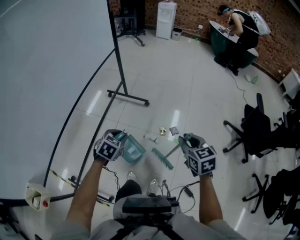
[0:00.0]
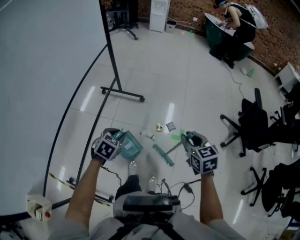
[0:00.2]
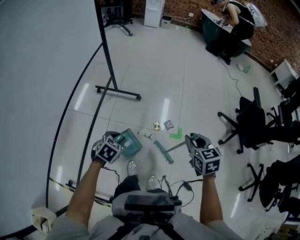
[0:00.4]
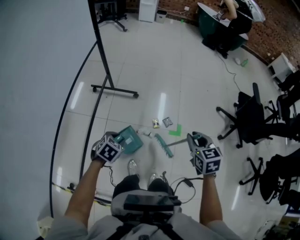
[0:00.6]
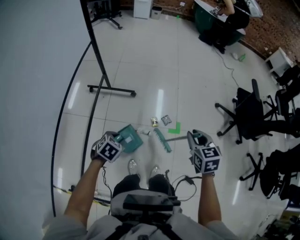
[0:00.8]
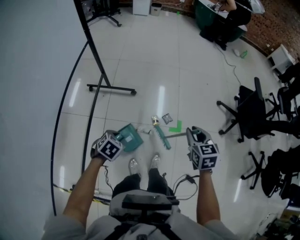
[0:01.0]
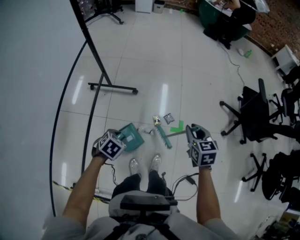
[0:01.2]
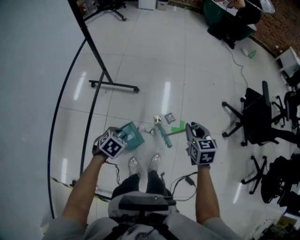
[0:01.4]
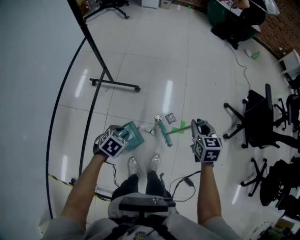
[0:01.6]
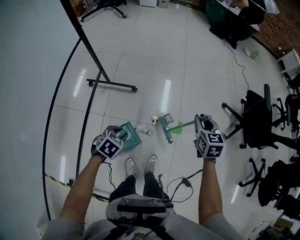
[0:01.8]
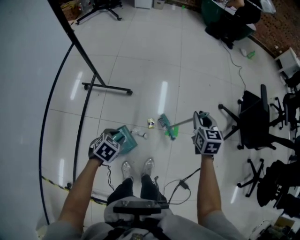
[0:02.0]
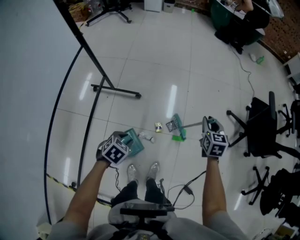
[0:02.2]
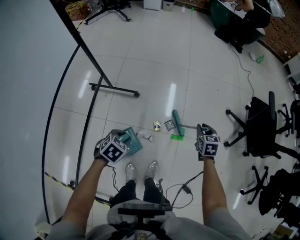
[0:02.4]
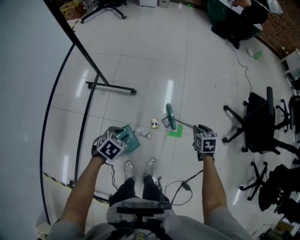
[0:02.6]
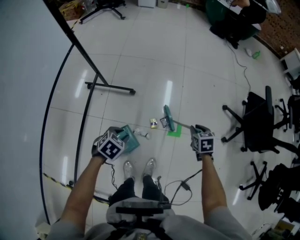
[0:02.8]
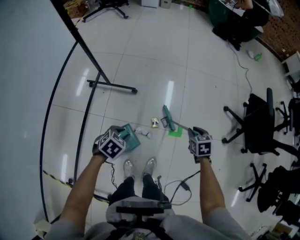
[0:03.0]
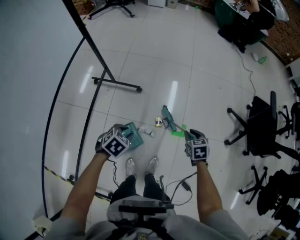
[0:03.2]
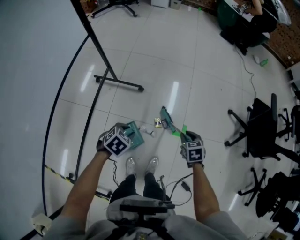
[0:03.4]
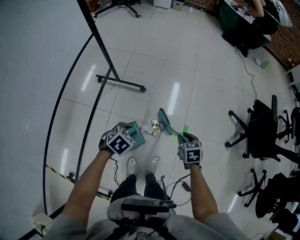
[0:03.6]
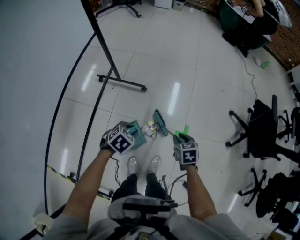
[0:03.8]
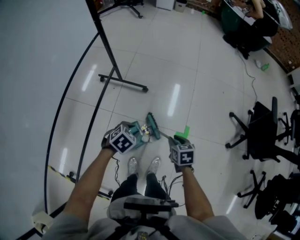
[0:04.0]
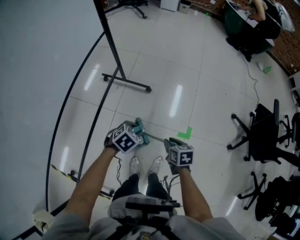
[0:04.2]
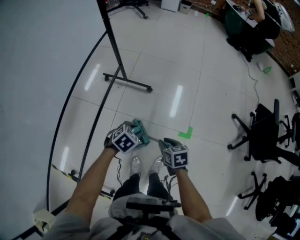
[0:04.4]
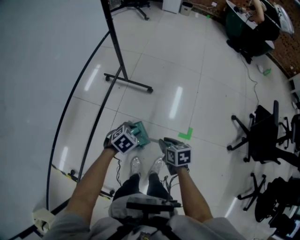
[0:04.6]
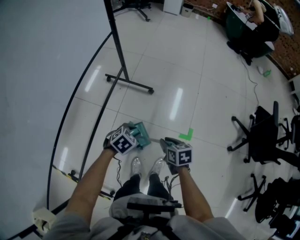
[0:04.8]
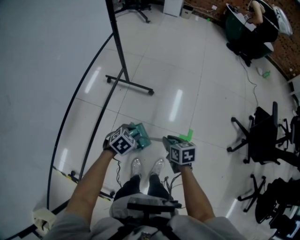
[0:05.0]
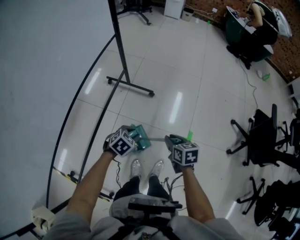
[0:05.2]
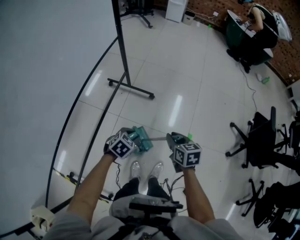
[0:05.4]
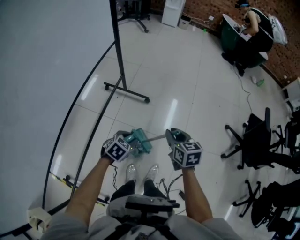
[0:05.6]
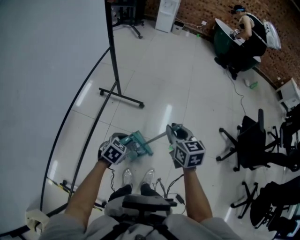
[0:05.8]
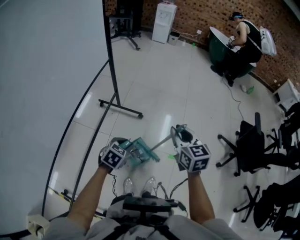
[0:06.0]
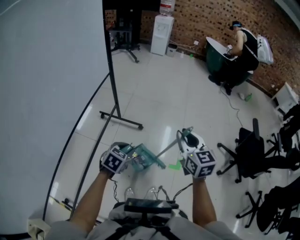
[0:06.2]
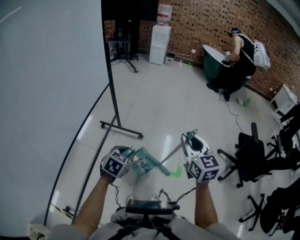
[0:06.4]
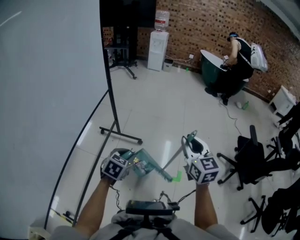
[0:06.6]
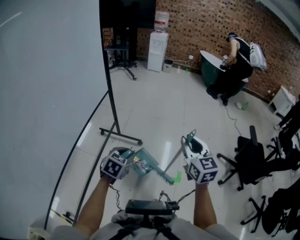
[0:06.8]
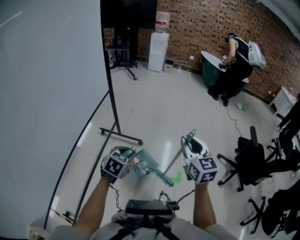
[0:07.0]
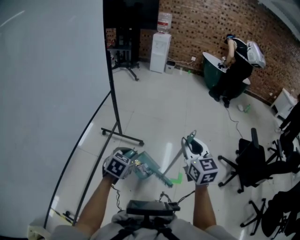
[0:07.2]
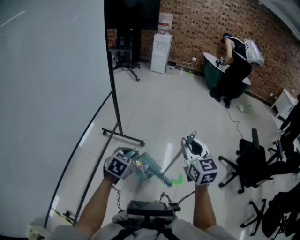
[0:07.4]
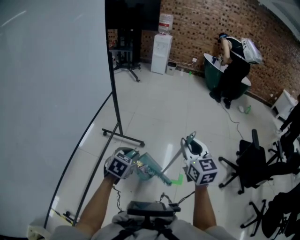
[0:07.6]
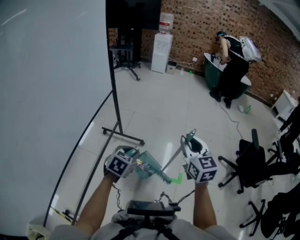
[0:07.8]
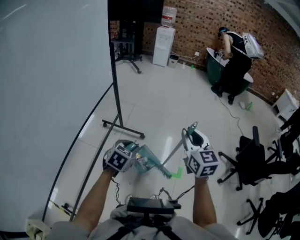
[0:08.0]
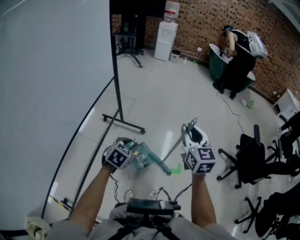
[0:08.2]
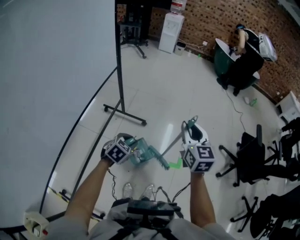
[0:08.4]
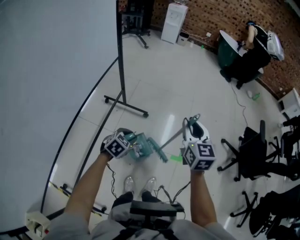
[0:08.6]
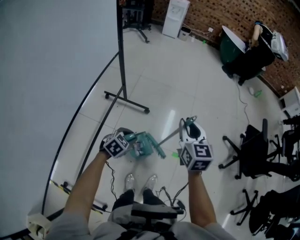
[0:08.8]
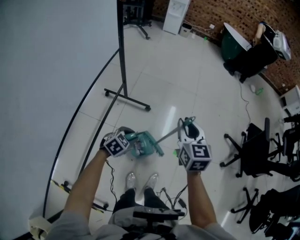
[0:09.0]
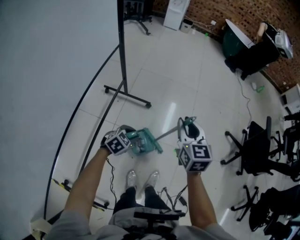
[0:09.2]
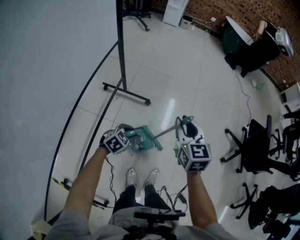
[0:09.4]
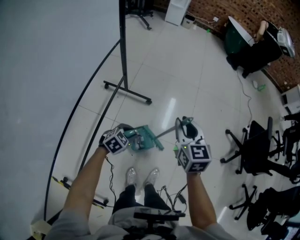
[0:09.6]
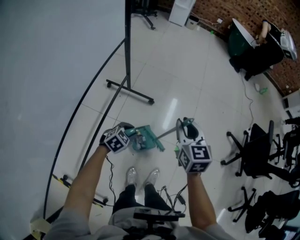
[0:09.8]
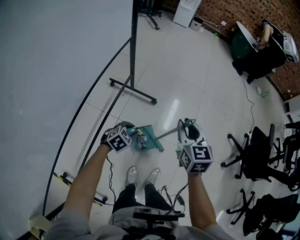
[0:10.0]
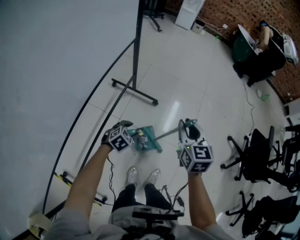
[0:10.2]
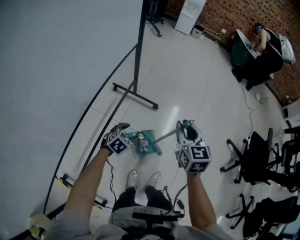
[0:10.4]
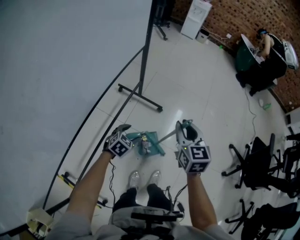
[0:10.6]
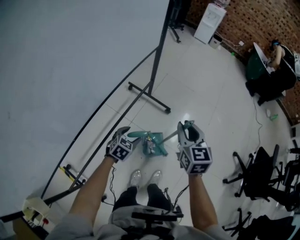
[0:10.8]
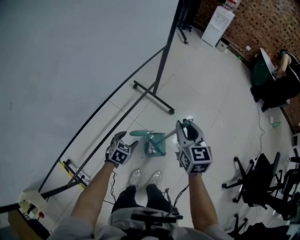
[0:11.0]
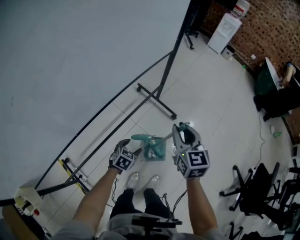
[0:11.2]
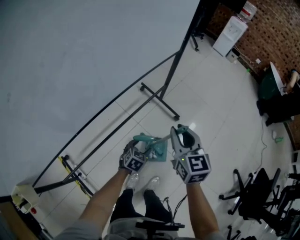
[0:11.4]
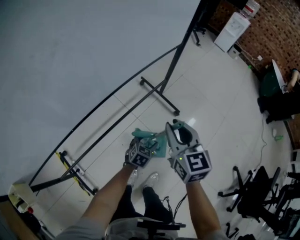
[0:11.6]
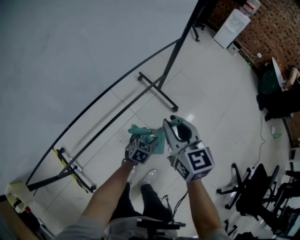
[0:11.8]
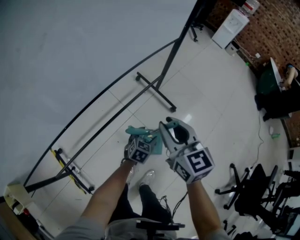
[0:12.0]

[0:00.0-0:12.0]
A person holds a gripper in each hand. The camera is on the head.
0:00.0 to 0:01.6: The right gripper shifts roughly 20 cm forward, and changes its angle by about 20 degrees. Meanwhile the left gripper travels forward and downward by about 15 cm, and changes its angle by about 20 degrees.
0:01.6 to 0:03.0: The right gripper moves downward and to the right, roughly 15 cm; the left gripper moves some 5 cm.
0:03.0 to 0:04.4: The right gripper moves to the left and backward, approximately 25 cm, and rotates approximately 20 degrees.
0:04.4 to 0:06.0: The left gripper goes some 10 cm upward. Meanwhile the right gripper goes roughly 25 cm upward, and swivels approximately 40 degrees.
0:06.0 to 0:07.6: Both grippers travel together upward, roughly 10 cm.
0:07.6 to 0:09.0: The left gripper travels downward by some 15 cm, while the right gripper moves downward and to the left, some 10 cm.
0:09.0 to 0:10.4: The two grippers go roughly 5 cm to the left. The left gripper opens up.
0:10.4 to 0:12.0: The left gripper turns by about 40 degrees. The right gripper moves approximately 15 cm, and swivels about 40 degrees.

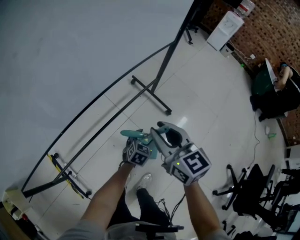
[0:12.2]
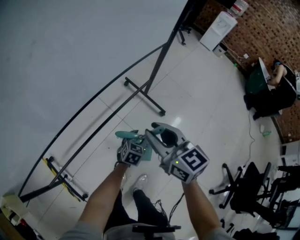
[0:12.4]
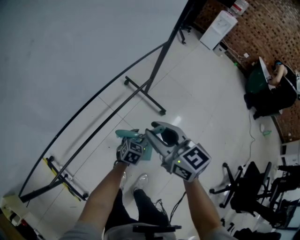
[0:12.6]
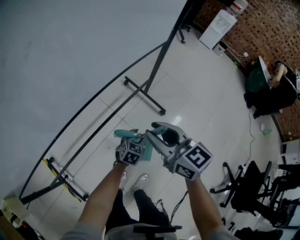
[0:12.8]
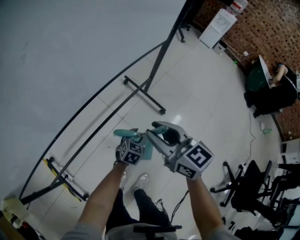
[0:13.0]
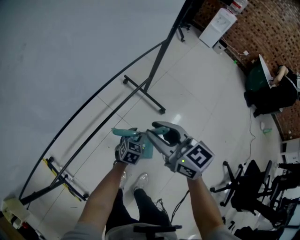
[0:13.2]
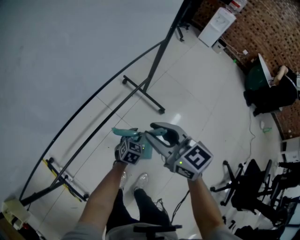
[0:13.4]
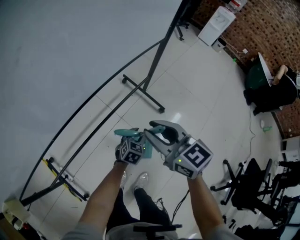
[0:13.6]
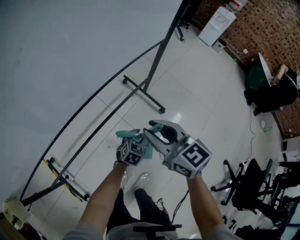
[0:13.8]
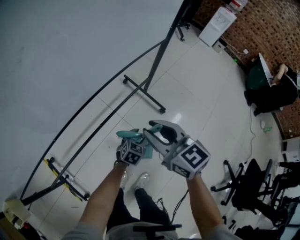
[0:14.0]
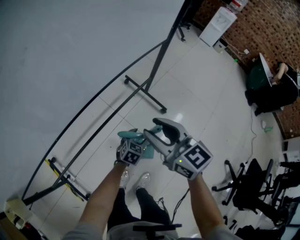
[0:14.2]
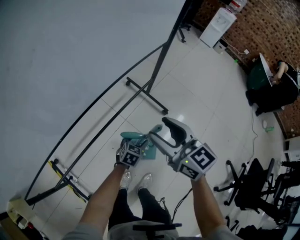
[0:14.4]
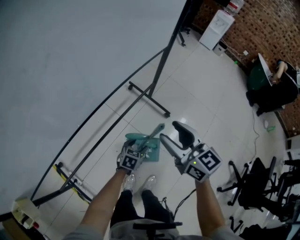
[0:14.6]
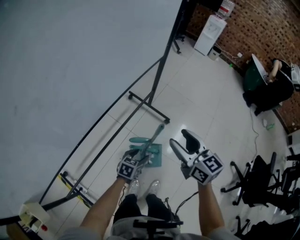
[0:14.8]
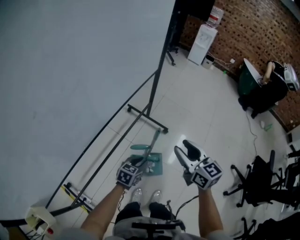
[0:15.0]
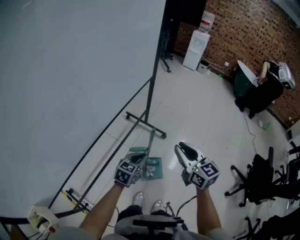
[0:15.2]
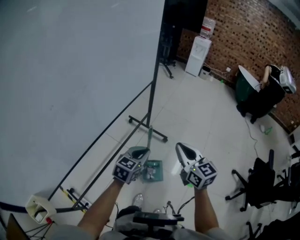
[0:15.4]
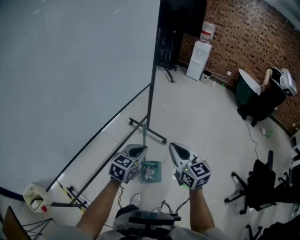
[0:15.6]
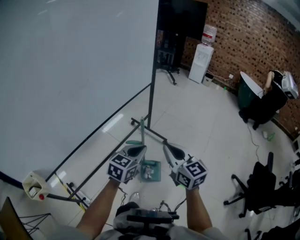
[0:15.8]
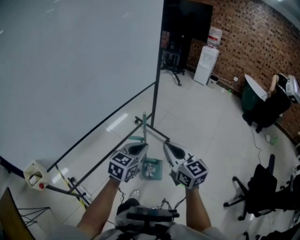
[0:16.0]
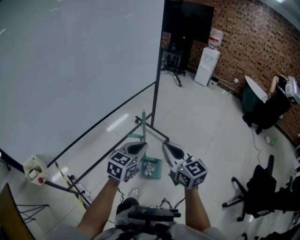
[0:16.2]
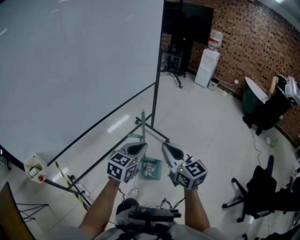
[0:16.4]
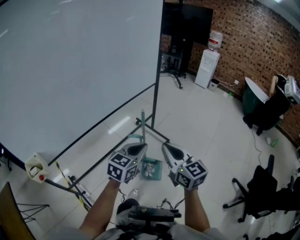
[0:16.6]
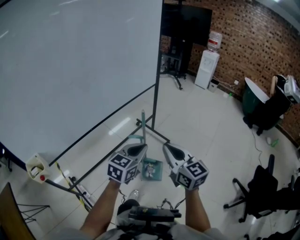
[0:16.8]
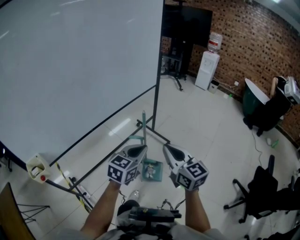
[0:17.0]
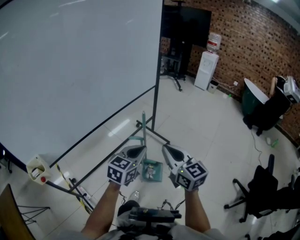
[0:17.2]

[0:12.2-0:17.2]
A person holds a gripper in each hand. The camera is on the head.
0:12.2 to 0:13.8: The left gripper closes its fingers.
0:13.8 to 0:15.6: The left gripper travels upward and backward by about 30 cm, changes its angle by approximately 20 degrees, and closes up; the right gripper travels backward, to the right and upward by roughly 20 cm, changes its angle by roughly 30 degrees, and closes up.
0:15.6 to 0:17.2: The left gripper moves backward and upward, roughly 10 cm, while the right gripper travels backward by about 10 cm.

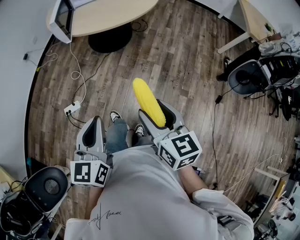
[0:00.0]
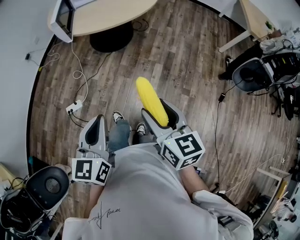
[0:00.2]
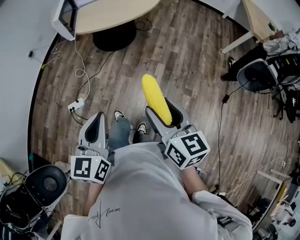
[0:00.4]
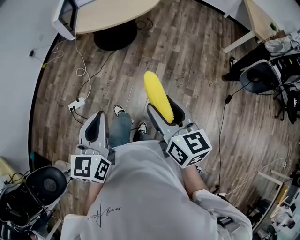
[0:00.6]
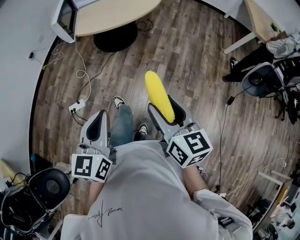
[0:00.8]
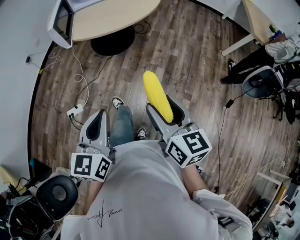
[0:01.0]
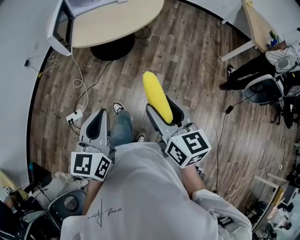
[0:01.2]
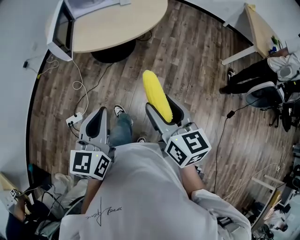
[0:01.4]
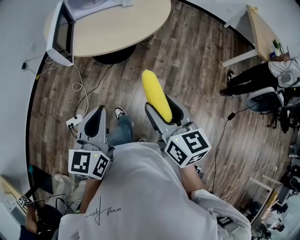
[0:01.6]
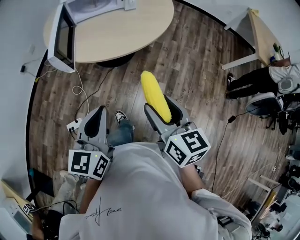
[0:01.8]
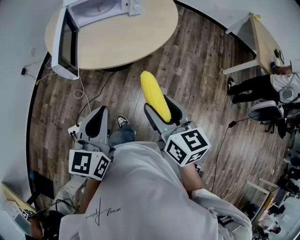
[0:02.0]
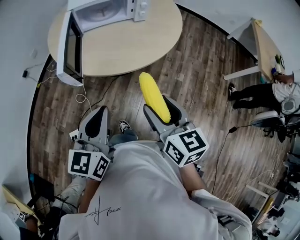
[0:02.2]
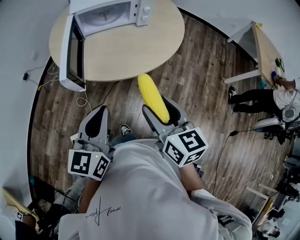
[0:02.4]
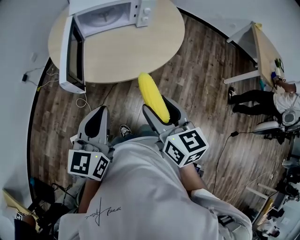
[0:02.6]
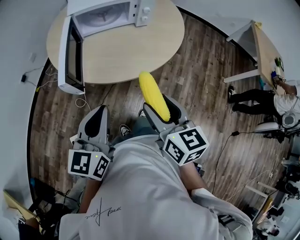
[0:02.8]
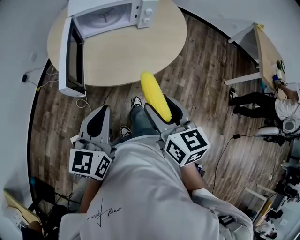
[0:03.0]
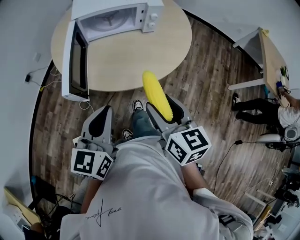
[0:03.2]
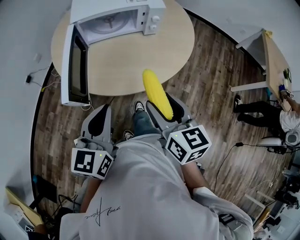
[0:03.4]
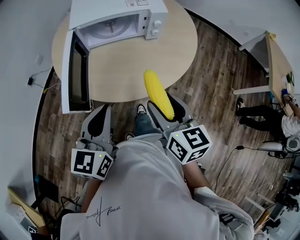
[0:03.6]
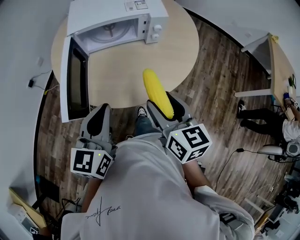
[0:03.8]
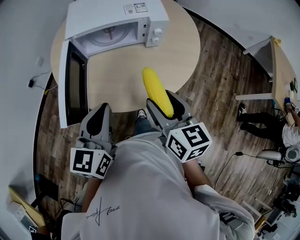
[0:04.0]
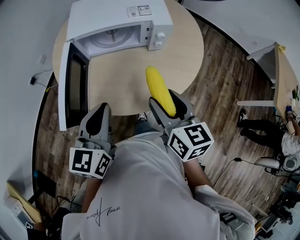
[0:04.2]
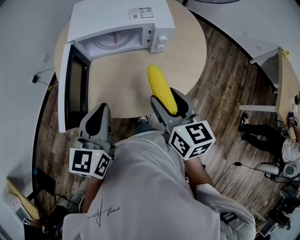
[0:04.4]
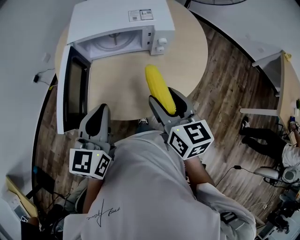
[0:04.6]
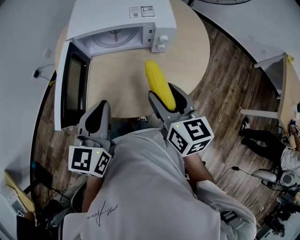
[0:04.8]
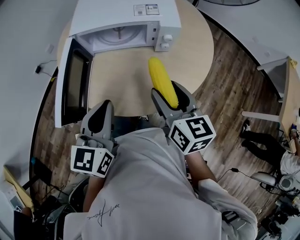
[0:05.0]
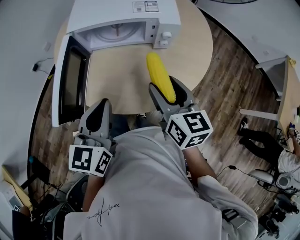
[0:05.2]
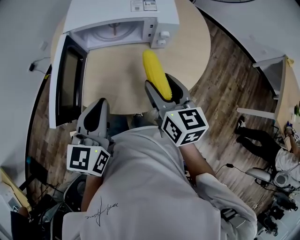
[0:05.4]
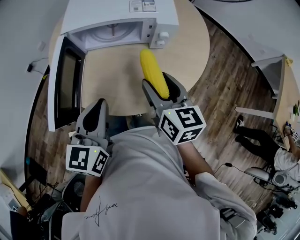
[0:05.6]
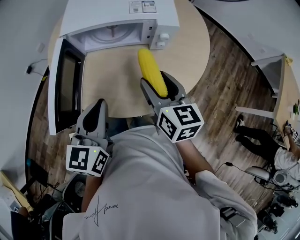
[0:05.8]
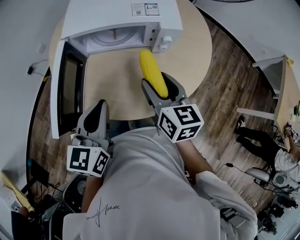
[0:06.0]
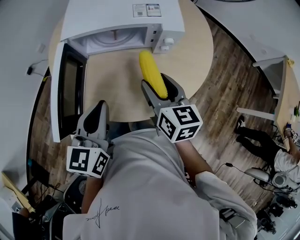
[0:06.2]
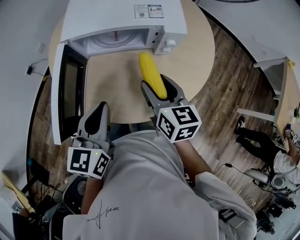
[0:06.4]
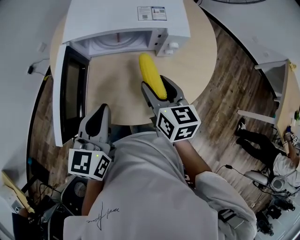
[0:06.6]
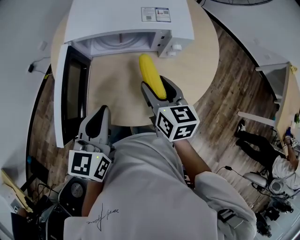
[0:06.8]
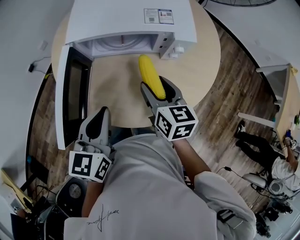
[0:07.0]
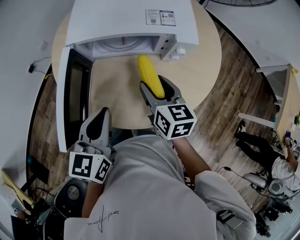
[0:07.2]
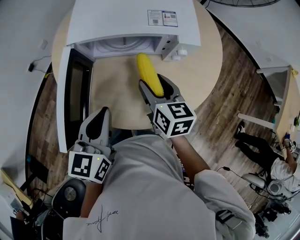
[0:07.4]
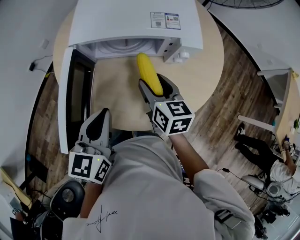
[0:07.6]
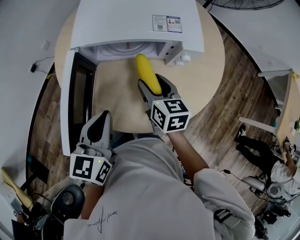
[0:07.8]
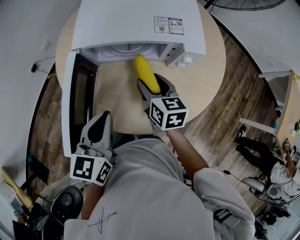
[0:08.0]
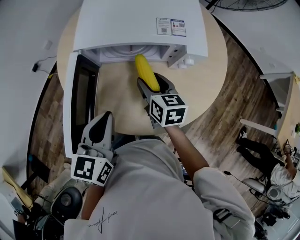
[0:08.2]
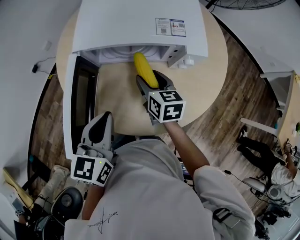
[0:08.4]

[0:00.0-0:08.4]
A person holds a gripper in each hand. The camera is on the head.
0:00.0 to 0:01.4: Both grippers move forward, approximately 15 cm.
0:01.4 to 0:02.8: The left gripper shifts roughly 25 cm forward; the right gripper shifts approximately 25 cm forward and to the left.
0:02.8 to 0:04.2: The grippers both shift forward by about 20 cm.
0:04.2 to 0:05.6: The right gripper travels forward by about 10 cm; the left gripper changes place by approximately 5 cm.
0:05.6 to 0:07.0: The right gripper shifts some 10 cm forward and downward; the left gripper is displaced forward by some 5 cm.
0:07.0 to 0:08.4: The right gripper moves forward and downward, about 10 cm.
